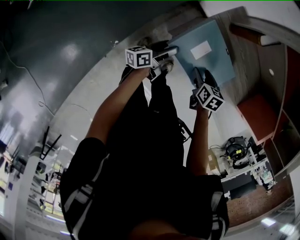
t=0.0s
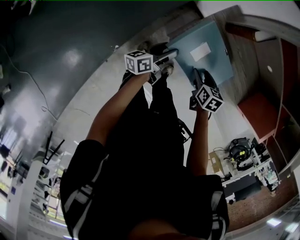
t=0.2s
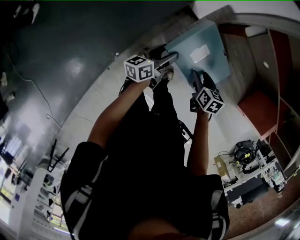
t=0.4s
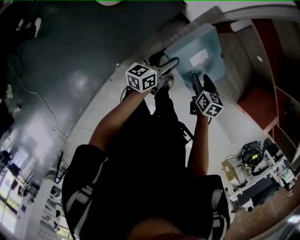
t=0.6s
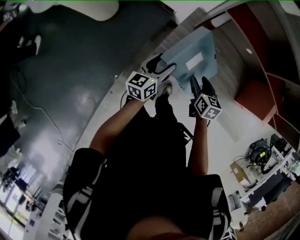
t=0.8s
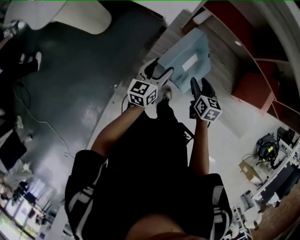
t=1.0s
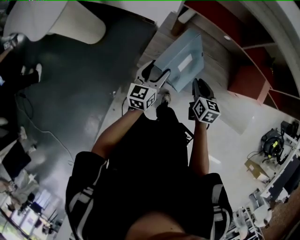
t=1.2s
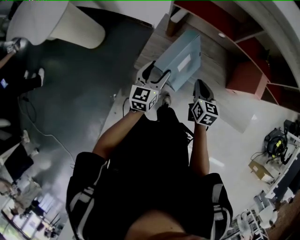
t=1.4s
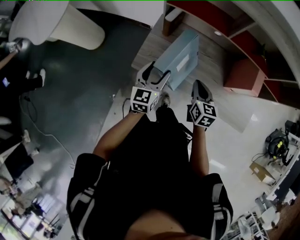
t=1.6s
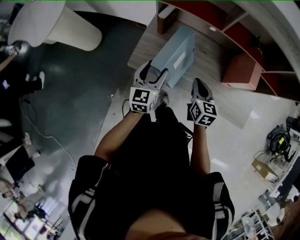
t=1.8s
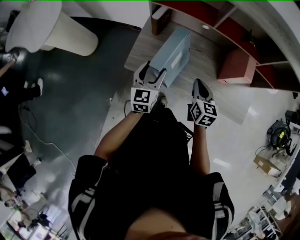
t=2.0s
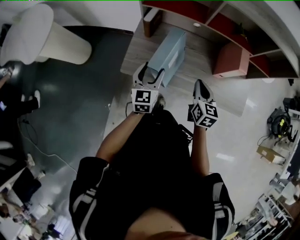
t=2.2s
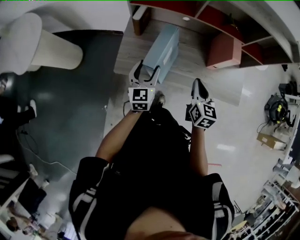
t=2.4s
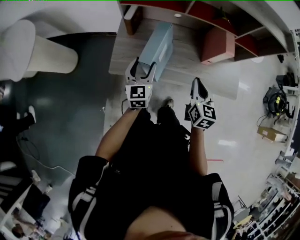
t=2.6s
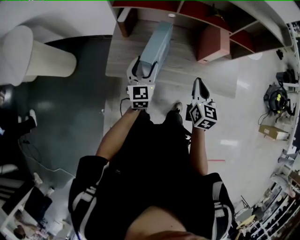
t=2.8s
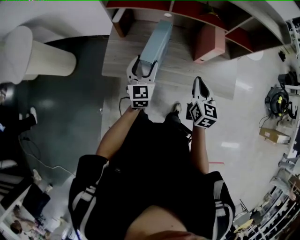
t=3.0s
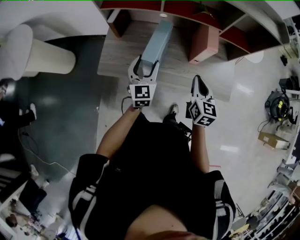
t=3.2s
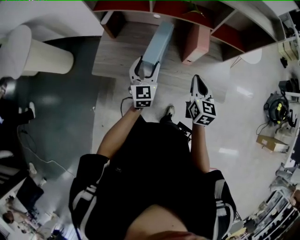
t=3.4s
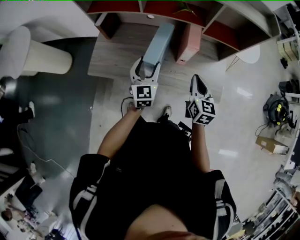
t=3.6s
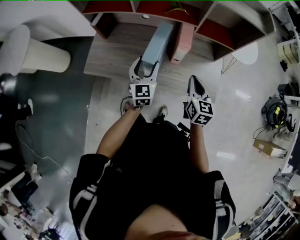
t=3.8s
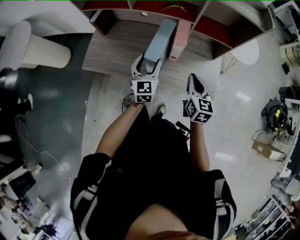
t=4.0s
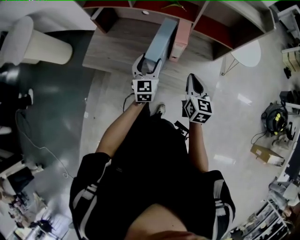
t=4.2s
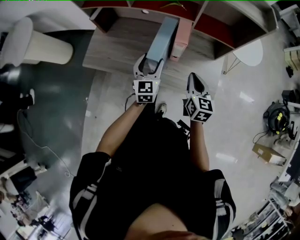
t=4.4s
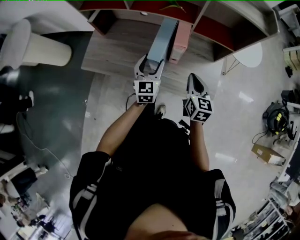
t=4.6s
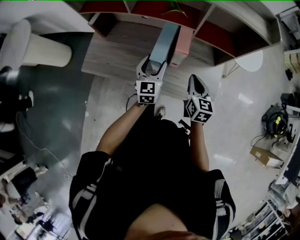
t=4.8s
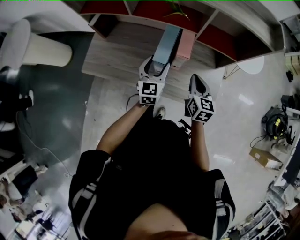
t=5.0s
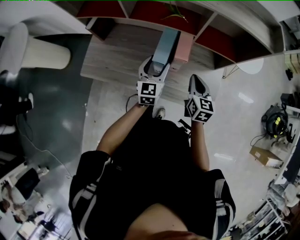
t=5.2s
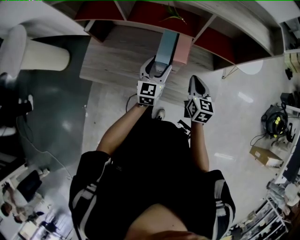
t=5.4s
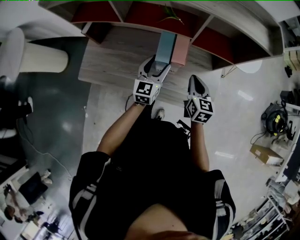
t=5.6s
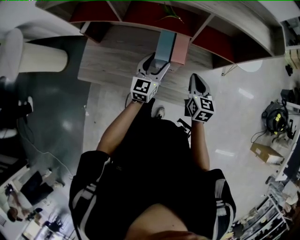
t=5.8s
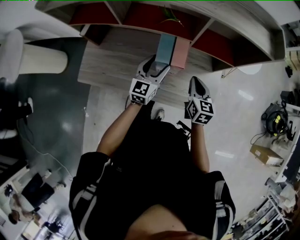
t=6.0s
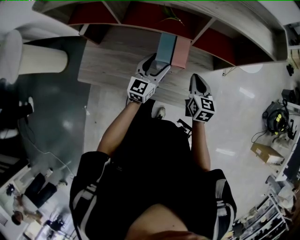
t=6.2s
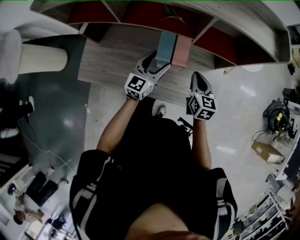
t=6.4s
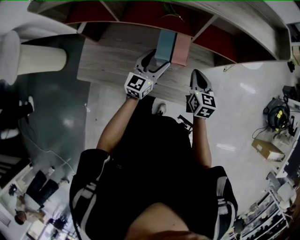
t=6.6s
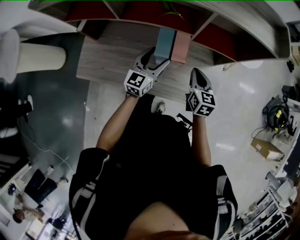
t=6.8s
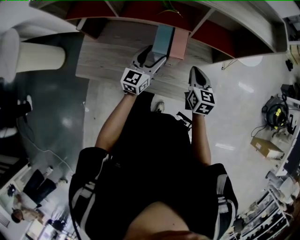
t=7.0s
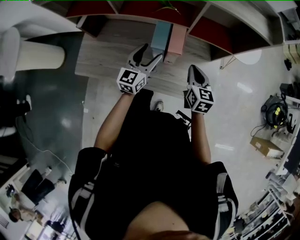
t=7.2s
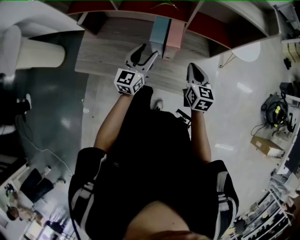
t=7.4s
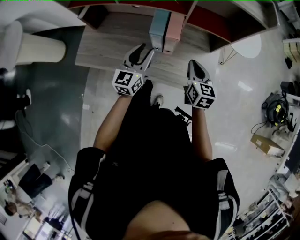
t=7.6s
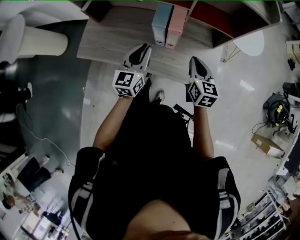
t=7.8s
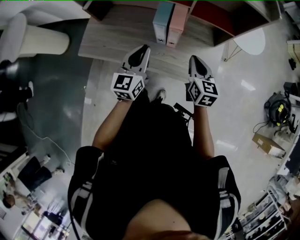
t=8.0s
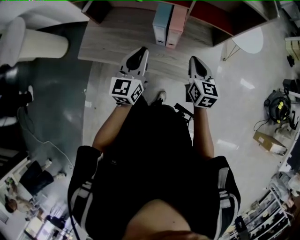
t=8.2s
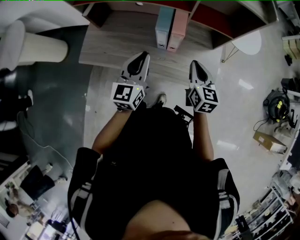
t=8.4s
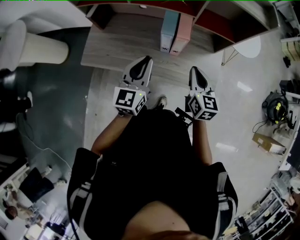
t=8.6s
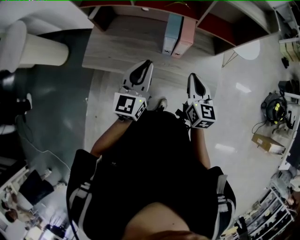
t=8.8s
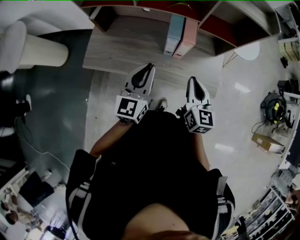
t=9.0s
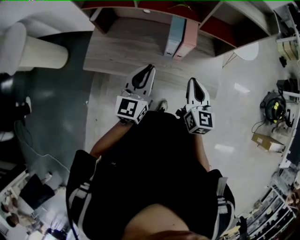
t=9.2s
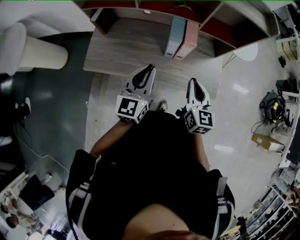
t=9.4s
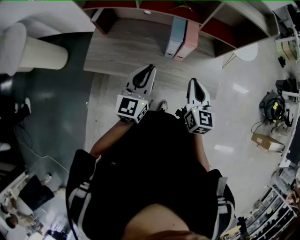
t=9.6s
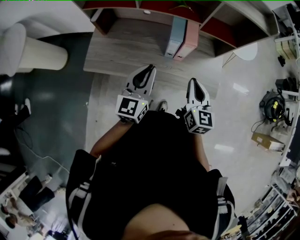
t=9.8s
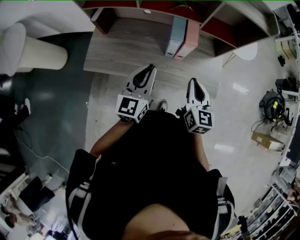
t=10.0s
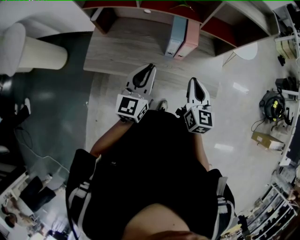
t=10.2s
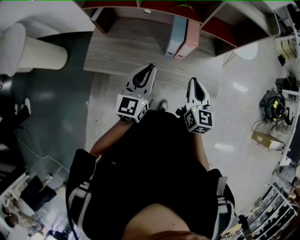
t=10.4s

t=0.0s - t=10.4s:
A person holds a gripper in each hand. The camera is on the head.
t=0.0s - t=1.4s: Both grippers travel together upward and to the right, roughly 25 cm. The right gripper rotates roughly 40 degrees, and closes its fingers, while the left gripper rotates around the line of its fingers by roughly 60 degrees, clockwise from behind.
t=1.4s - t=3.0s: The right gripper is displaced to the right, backward and upward by approximately 25 cm, and swivels roughly 20 degrees, while the left gripper is displaced to the right by approximately 15 cm.
t=3.0s - t=4.4s: Both grippers move to the right, roughly 25 cm.
t=4.4s - t=6.0s: Both grippers move forward, roughly 10 cm. The left gripper swivels approximately 20 degrees.
t=6.0s - t=7.4s: The left gripper ends up some 5 cm from where it was.
t=7.4s - t=9.0s: Both grippers travel together backward, upward and to the left, about 15 cm. The left gripper closes its fingers.
t=9.0s - t=10.4s: The grippers make only small movements.

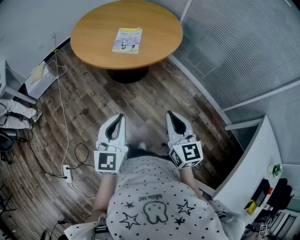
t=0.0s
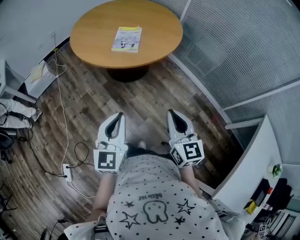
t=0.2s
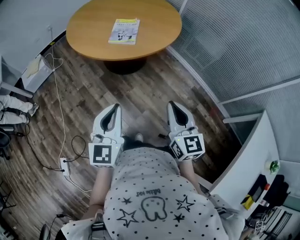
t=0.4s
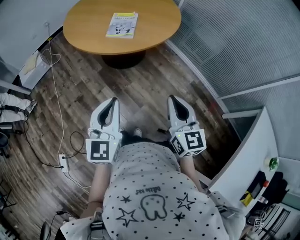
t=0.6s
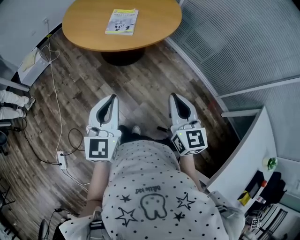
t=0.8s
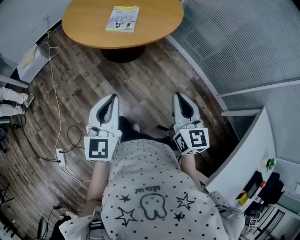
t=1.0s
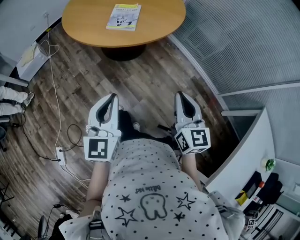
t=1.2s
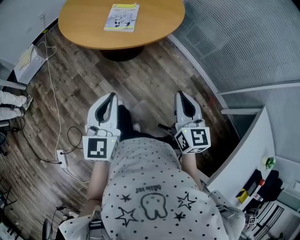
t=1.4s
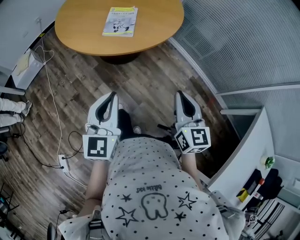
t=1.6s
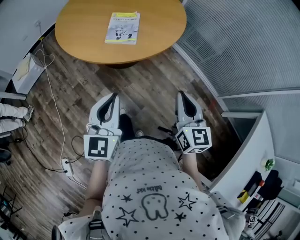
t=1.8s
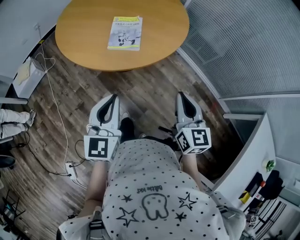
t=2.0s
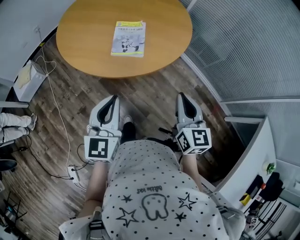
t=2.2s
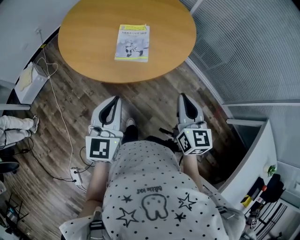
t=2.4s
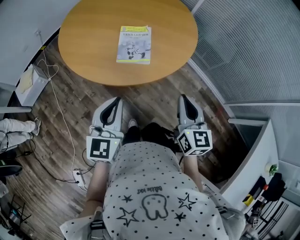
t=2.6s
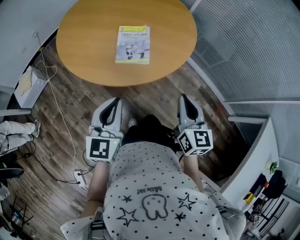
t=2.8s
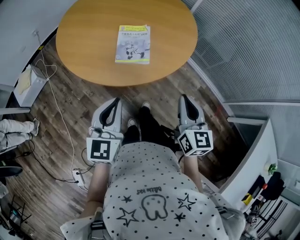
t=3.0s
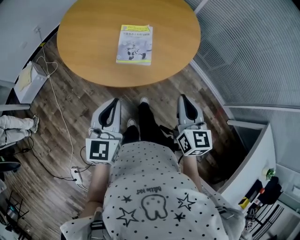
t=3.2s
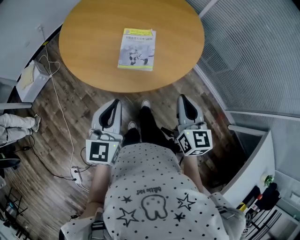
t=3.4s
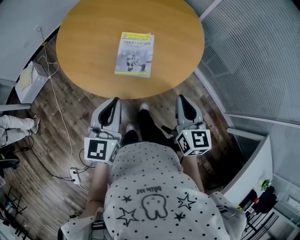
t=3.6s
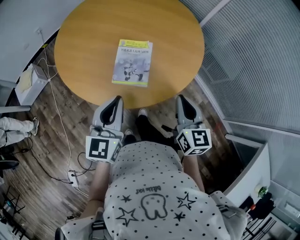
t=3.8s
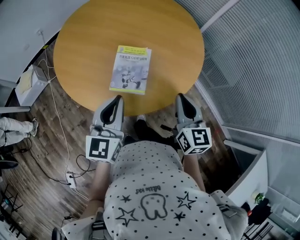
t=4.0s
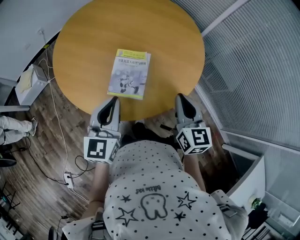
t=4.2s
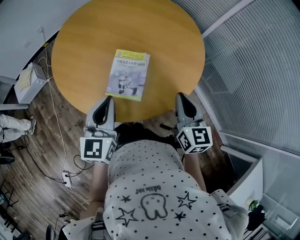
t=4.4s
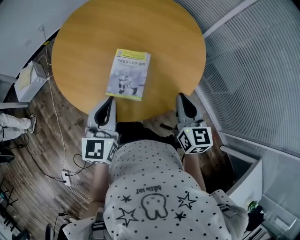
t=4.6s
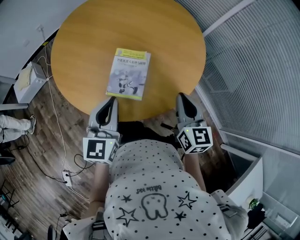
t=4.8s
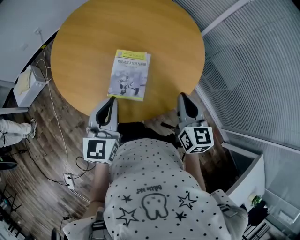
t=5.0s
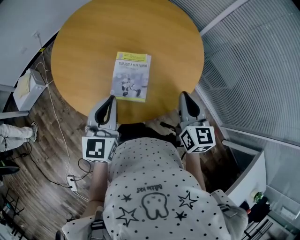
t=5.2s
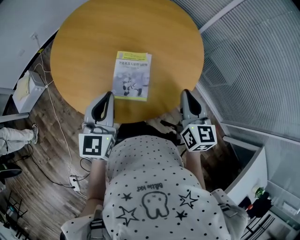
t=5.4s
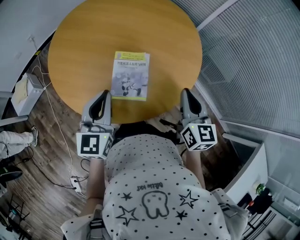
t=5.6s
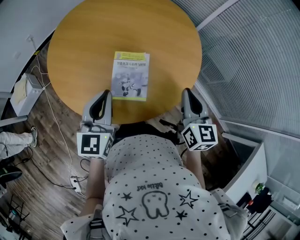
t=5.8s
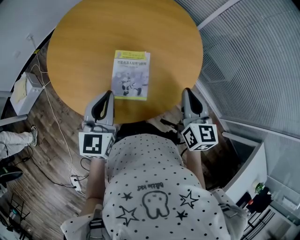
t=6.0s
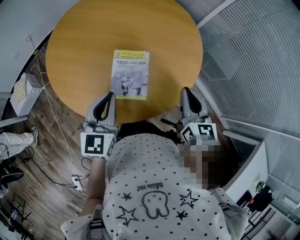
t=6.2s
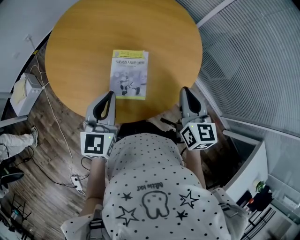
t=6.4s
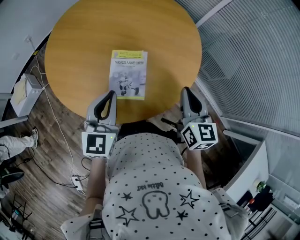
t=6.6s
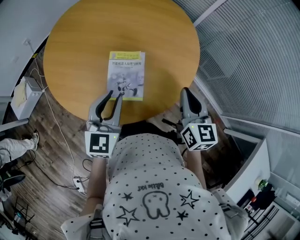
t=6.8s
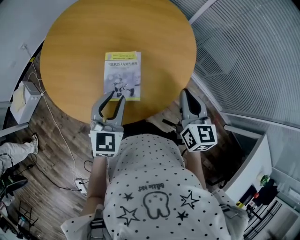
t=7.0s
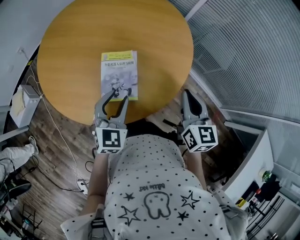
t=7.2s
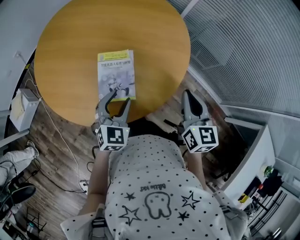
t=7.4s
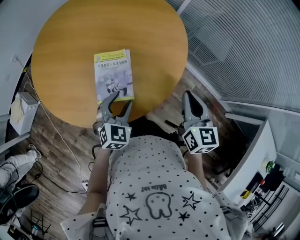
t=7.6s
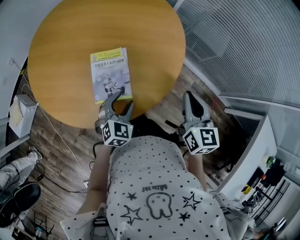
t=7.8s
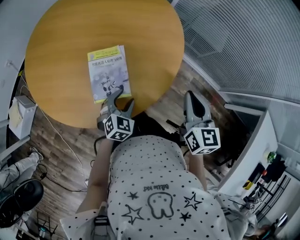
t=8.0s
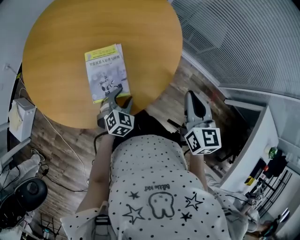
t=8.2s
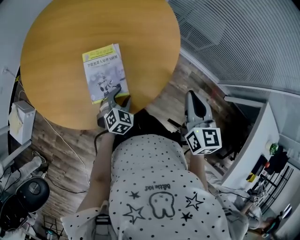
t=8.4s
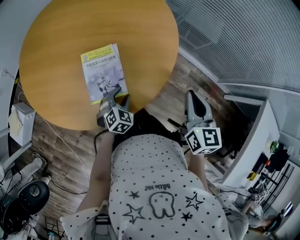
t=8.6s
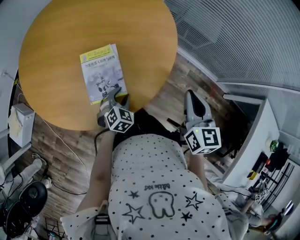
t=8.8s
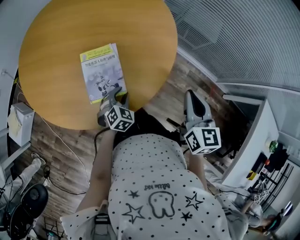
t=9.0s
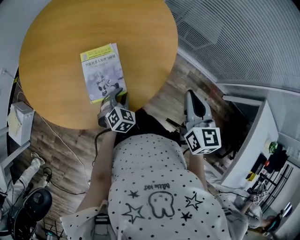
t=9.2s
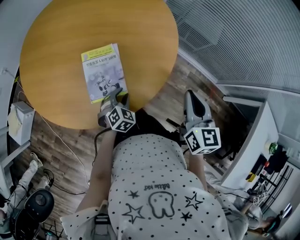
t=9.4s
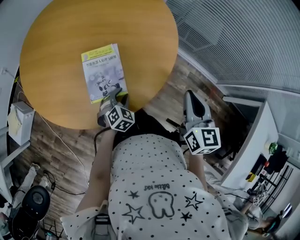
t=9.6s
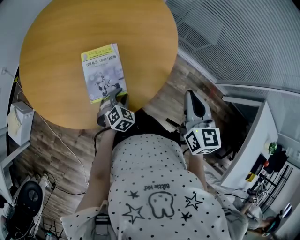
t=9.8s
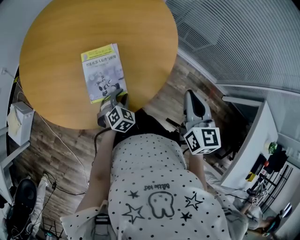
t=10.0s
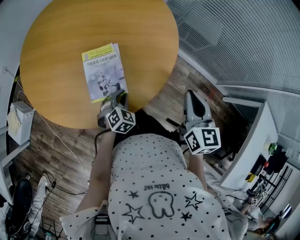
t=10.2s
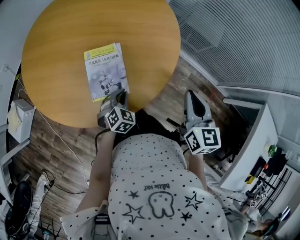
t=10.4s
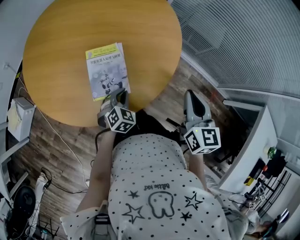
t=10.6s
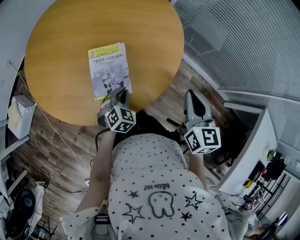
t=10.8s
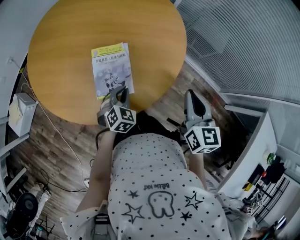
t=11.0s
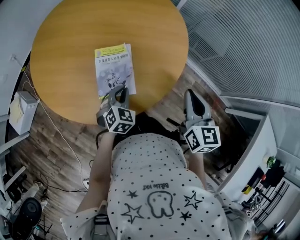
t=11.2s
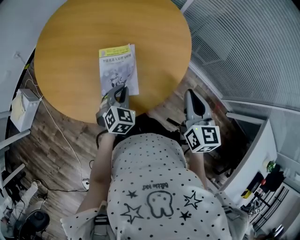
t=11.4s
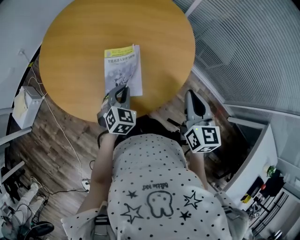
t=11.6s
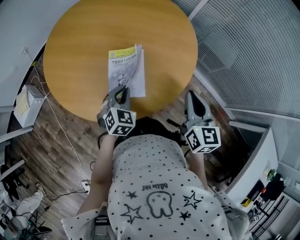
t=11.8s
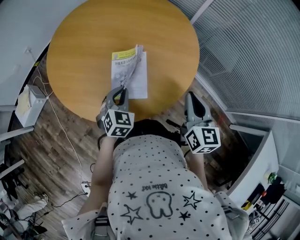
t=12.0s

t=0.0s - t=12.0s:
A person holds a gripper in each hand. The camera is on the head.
t=0.0s - t=1.6s: The two grippers go approximately 10 cm forward.
t=1.6s - t=3.0s: The two grippers go some 20 cm forward and to the left.
t=3.0s - t=4.4s: Both grippers move forward, some 20 cm.
t=4.4s - t=6.0s: The left gripper moves roughly 5 cm.
t=6.0s - t=7.6s: The left gripper is displaced downward and to the right by roughly 15 cm, changes its angle by approximately 40 degrees, and opens, while the right gripper heads to the right, covering some 5 cm.
t=7.6s - t=9.0s: The left gripper moves downward, some 15 cm.
t=9.0s - t=10.4s: The left gripper closes its fingers.
t=10.4s - t=12.0s: The left gripper moves upward and to the left, approximately 15 cm, and changes its angle by roughly 20 degrees. The right gripper heads to the left, covering about 5 cm.

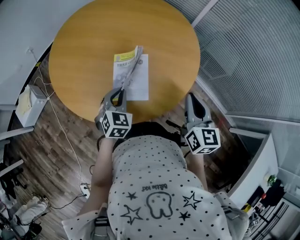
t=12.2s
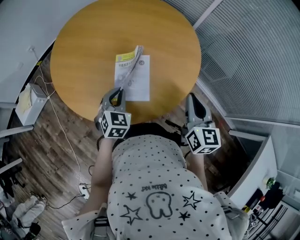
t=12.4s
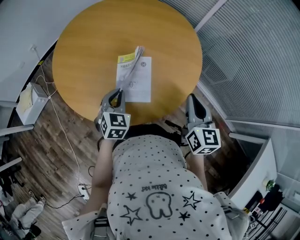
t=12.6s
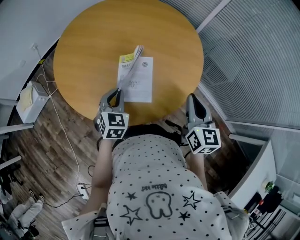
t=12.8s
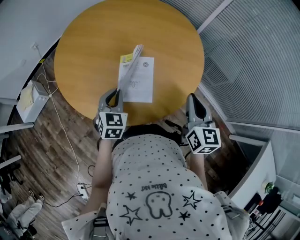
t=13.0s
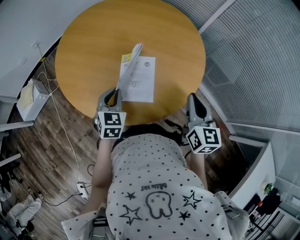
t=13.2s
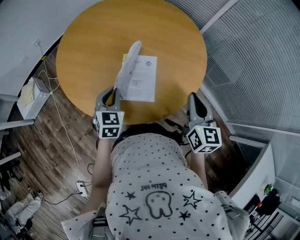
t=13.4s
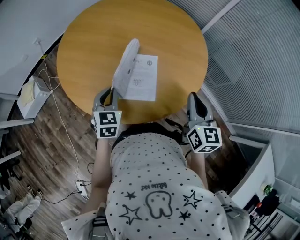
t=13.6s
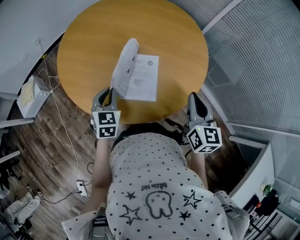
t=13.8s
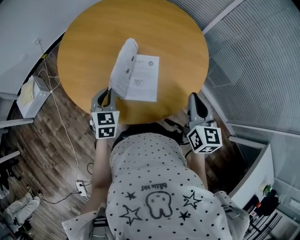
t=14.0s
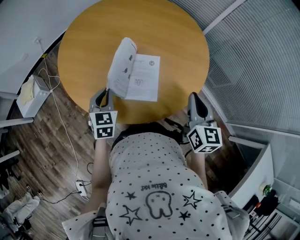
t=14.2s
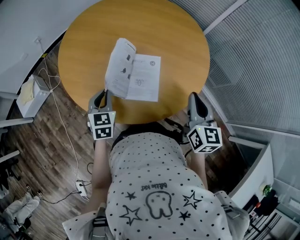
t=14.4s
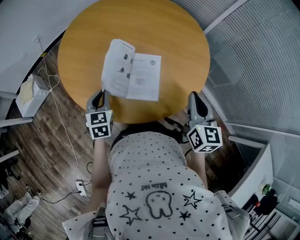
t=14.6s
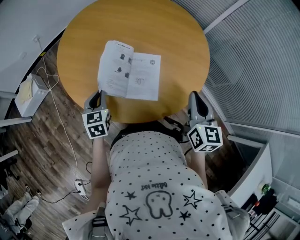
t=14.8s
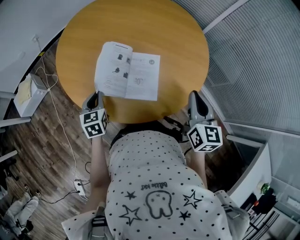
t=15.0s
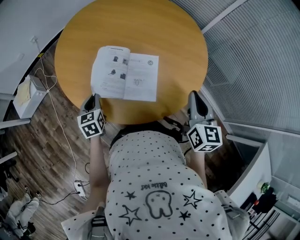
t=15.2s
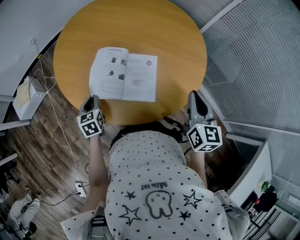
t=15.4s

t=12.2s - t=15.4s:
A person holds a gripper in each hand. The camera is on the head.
t=12.2s - t=13.8s: The left gripper goes roughly 10 cm to the left.
t=13.8s - t=15.4s: The left gripper shifts roughly 10 cm to the left and downward, and rotates some 30 degrees.
